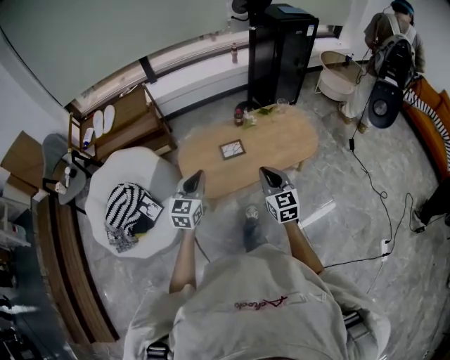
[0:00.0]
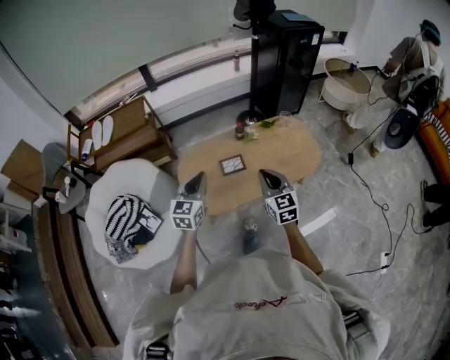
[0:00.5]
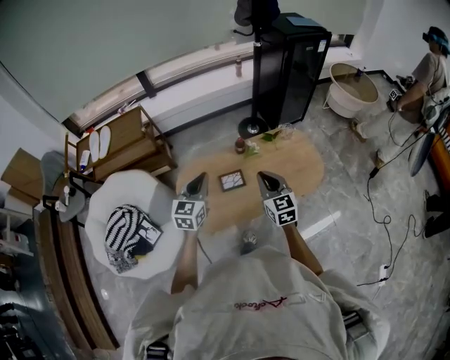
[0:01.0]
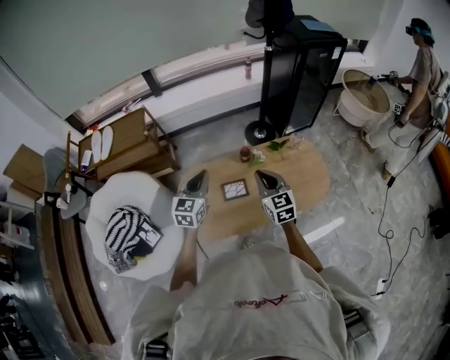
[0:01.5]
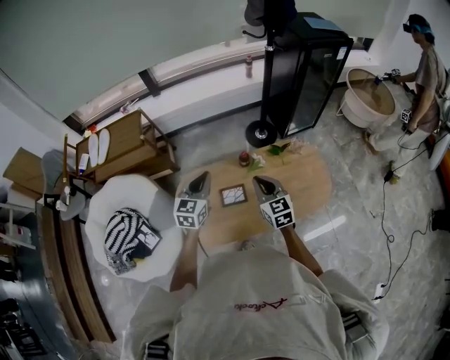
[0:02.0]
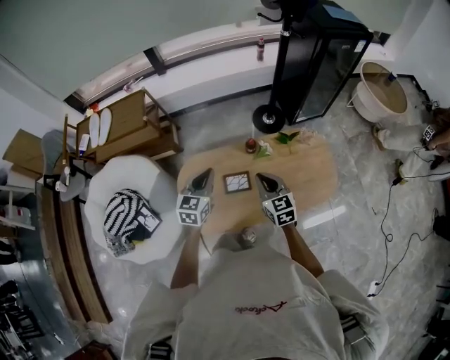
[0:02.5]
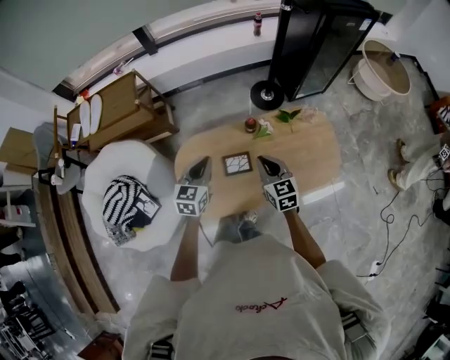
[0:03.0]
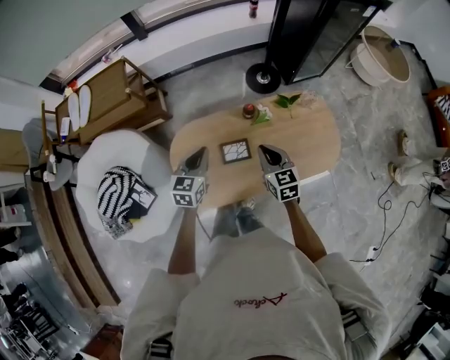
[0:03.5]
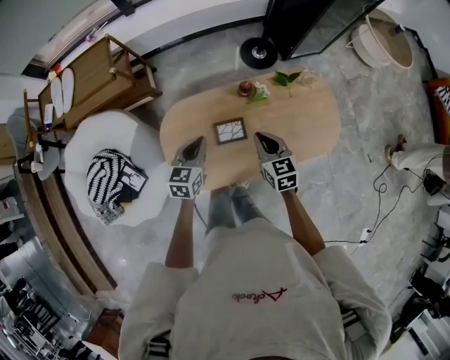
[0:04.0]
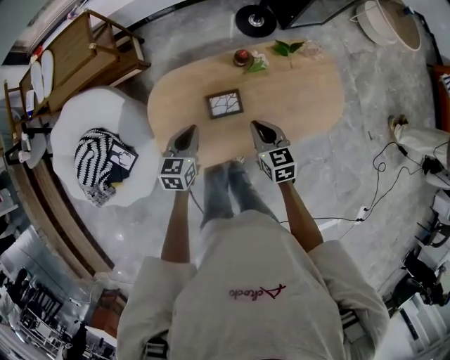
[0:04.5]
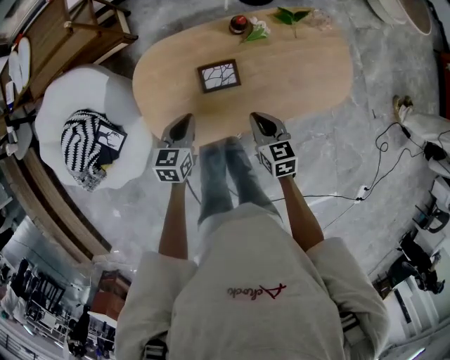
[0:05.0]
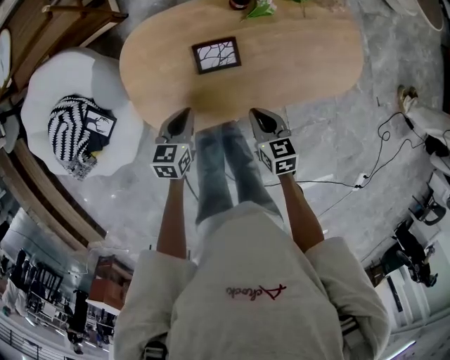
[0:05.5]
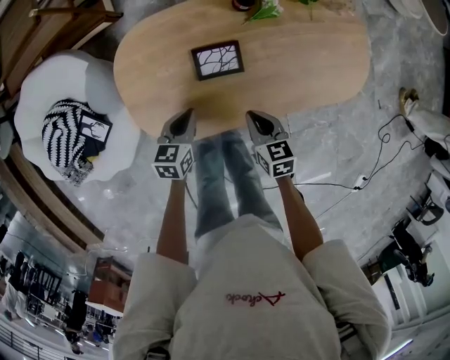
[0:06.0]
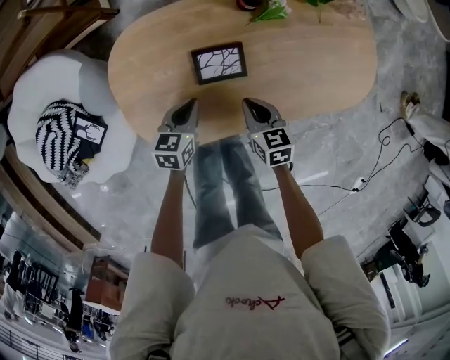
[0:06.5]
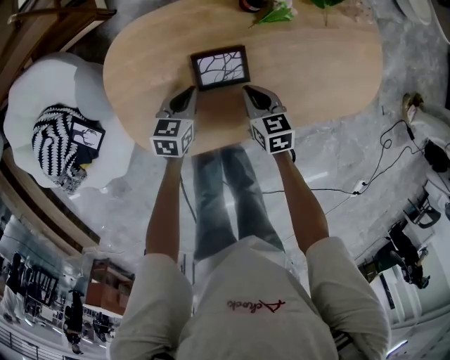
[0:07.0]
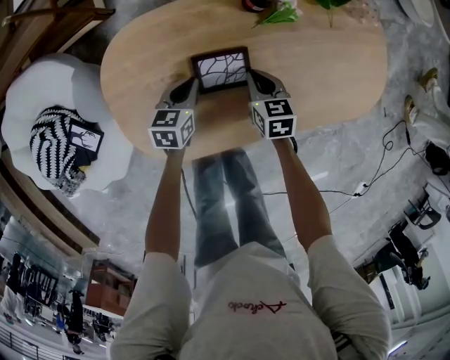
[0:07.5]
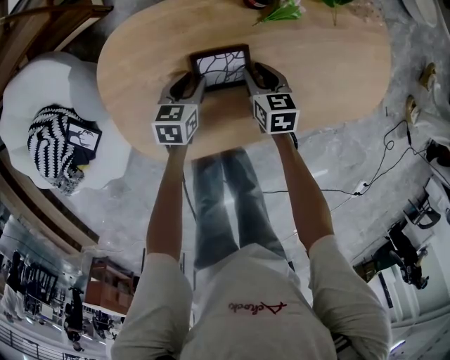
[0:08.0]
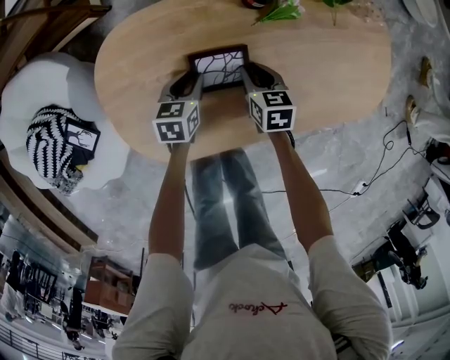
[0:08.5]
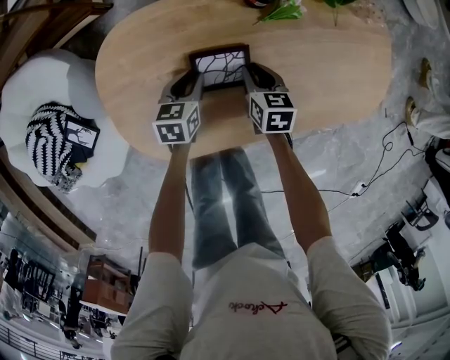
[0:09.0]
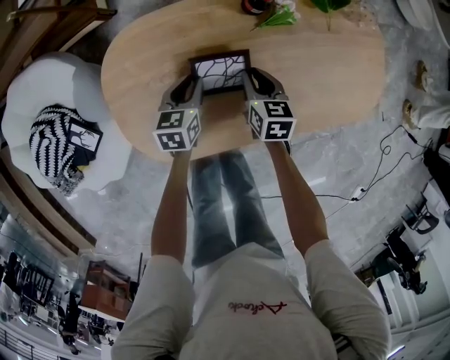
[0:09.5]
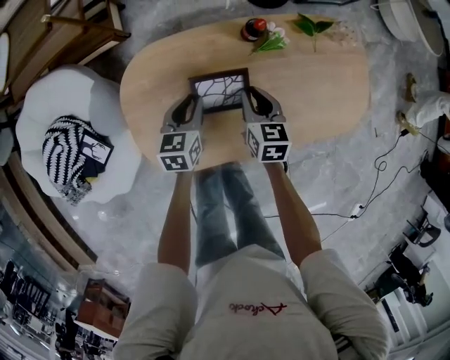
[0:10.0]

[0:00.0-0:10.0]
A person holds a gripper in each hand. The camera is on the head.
0:00.0 to 0:02.0: The grippers both shift forward by some 35 cm.
0:02.0 to 0:04.0: Both grippers travel together downward, some 15 cm.
0:04.0 to 0:06.0: The left gripper moves downward, approximately 25 cm. Meanwhile the right gripper goes about 30 cm downward and backward.
0:06.0 to 0:08.0: The left gripper shifts about 20 cm downward and forward, and opens up. Meanwhile the right gripper travels forward and downward by about 20 cm, and opens up.
0:08.0 to 0:10.0: Both grippers move upward, roughly 15 cm.

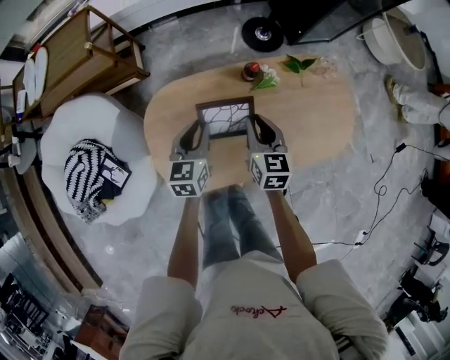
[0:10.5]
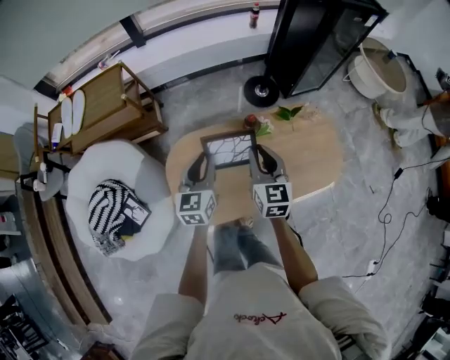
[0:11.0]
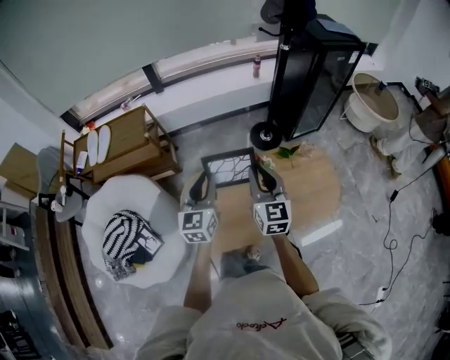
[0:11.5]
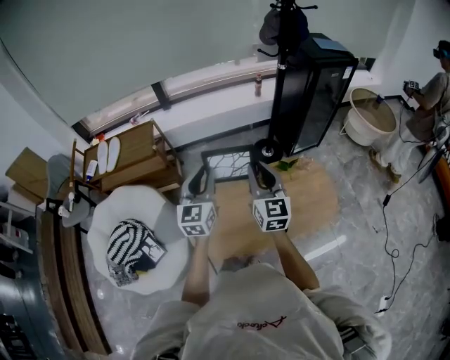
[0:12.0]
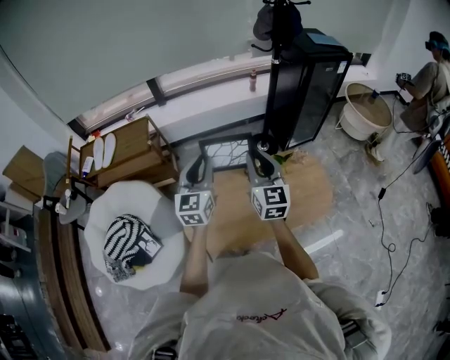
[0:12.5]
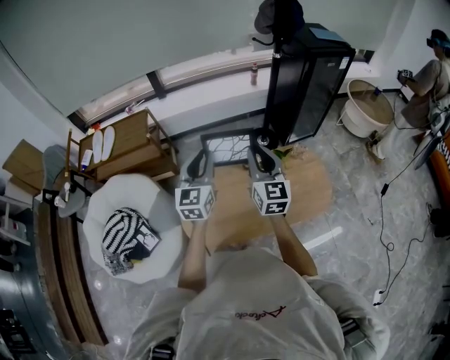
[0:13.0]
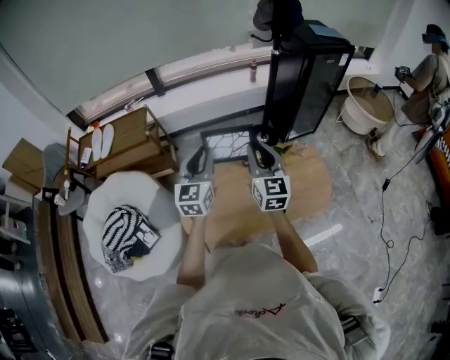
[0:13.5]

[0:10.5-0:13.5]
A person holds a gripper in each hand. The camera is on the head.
0:10.5 to 0:12.0: The two grippers go approximately 40 cm upward. The right gripper turns by some 30 degrees. Meanwhile the left gripper swivels approximately 30 degrees.
0:12.0 to 0:13.5: The grippers make only small movements.

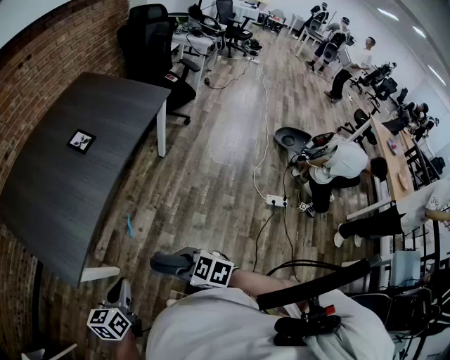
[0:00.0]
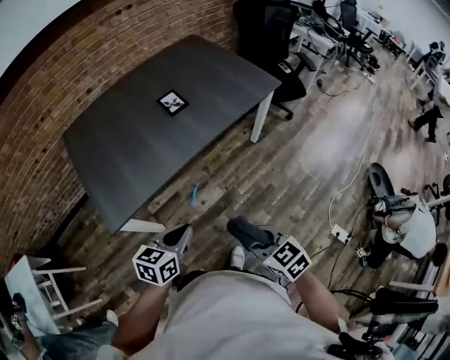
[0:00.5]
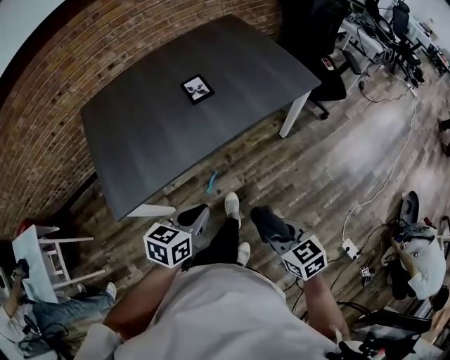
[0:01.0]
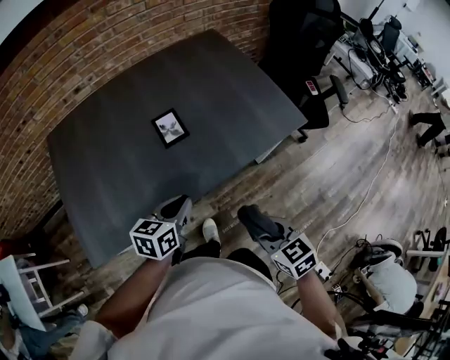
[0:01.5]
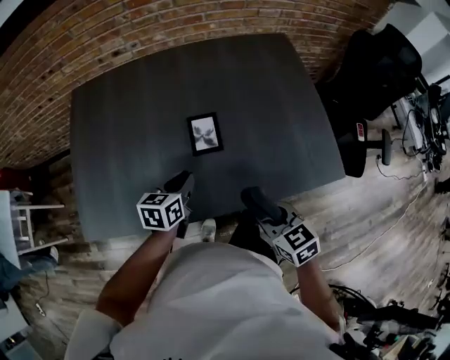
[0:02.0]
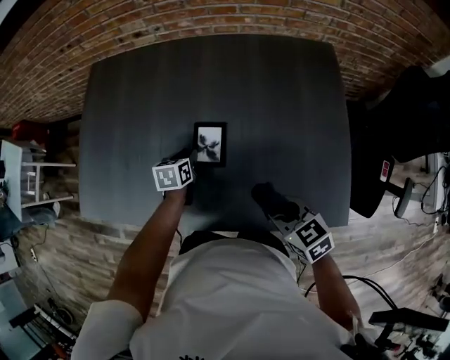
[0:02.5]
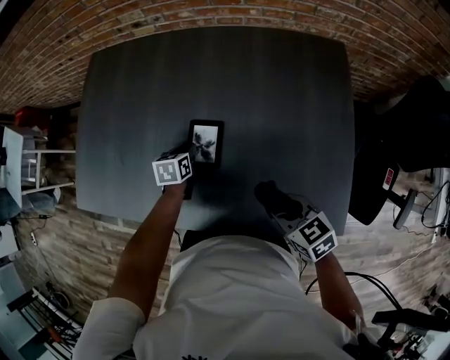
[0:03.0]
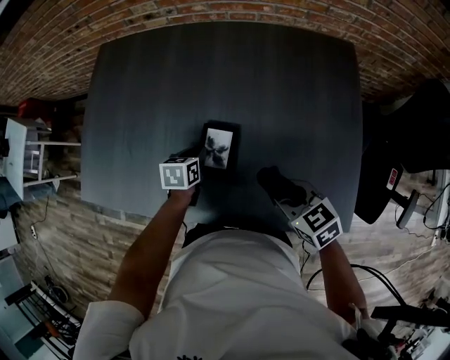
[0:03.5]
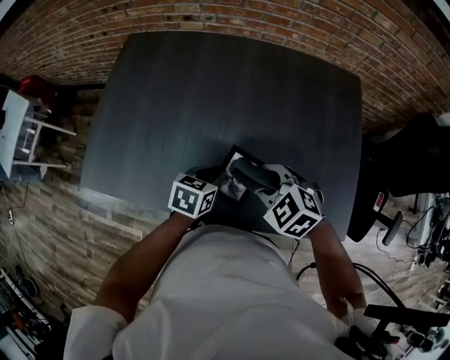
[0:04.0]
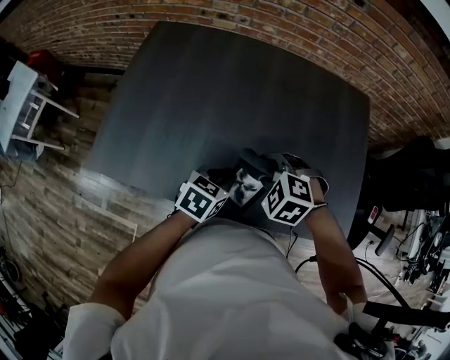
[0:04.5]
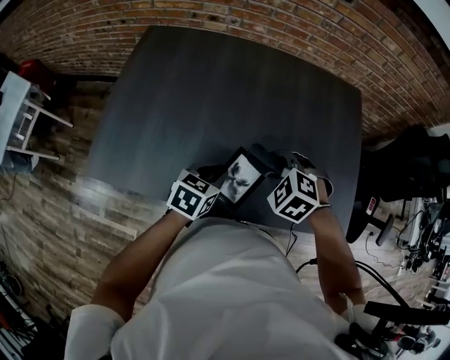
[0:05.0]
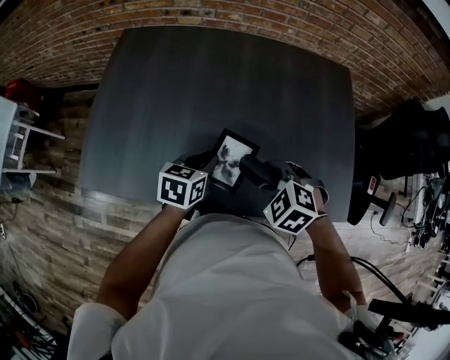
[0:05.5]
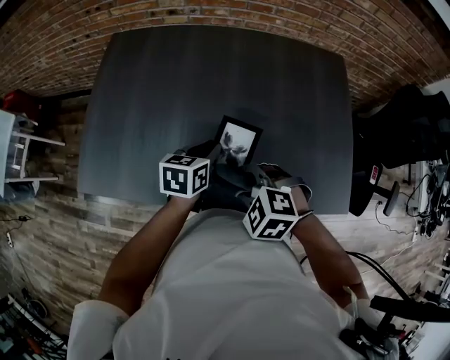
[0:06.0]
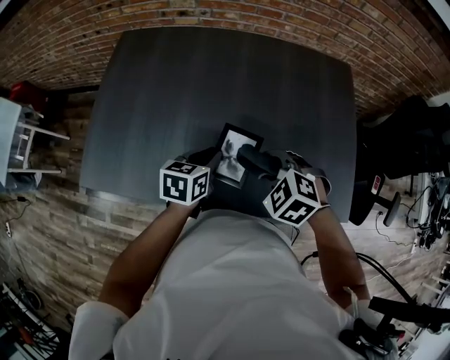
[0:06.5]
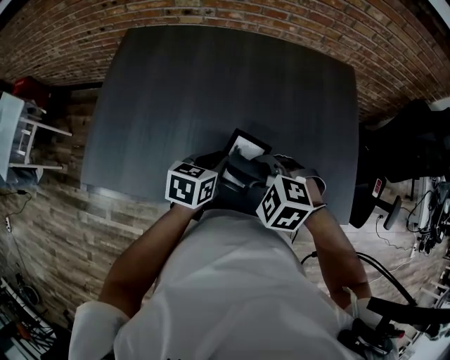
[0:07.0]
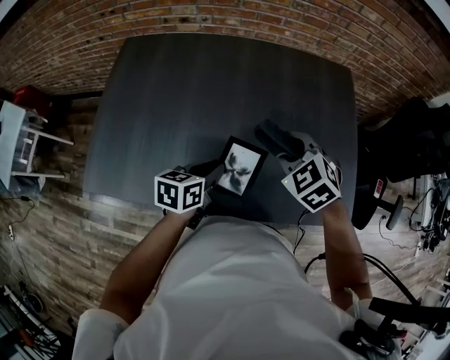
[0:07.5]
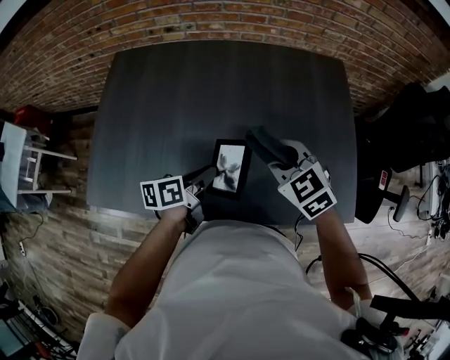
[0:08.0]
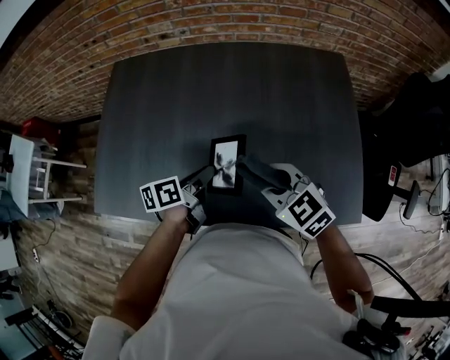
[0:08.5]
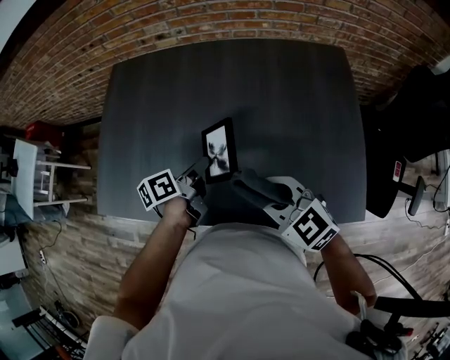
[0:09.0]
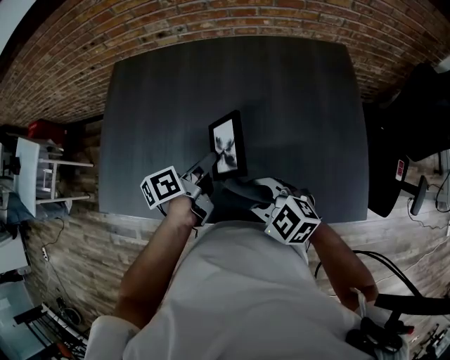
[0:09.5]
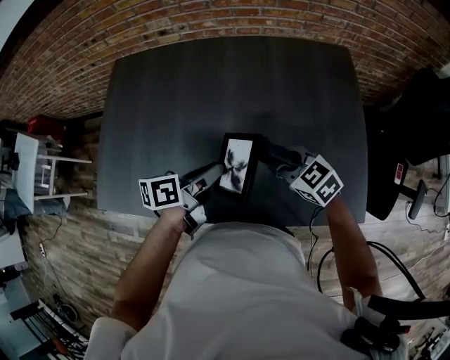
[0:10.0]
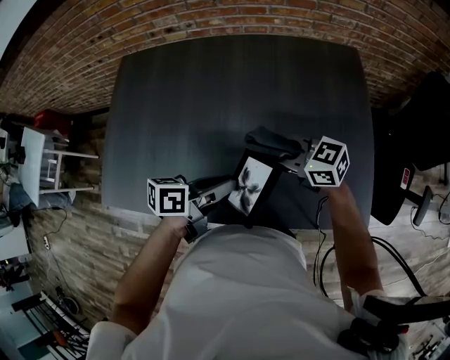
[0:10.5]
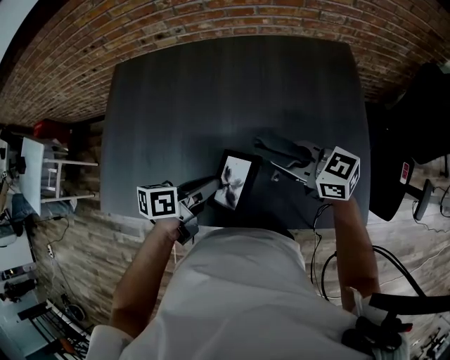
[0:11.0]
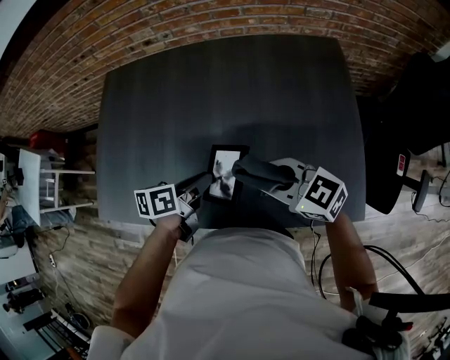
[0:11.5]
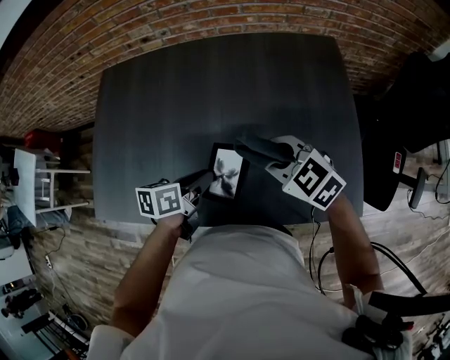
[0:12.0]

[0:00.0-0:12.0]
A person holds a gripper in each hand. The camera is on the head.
0:00.0 to 0:02.0: The pair of grippers is taken some 60 cm. The left gripper swivels roughly 40 degrees.
0:02.0 to 0:04.0: The left gripper goes downward and returns, some 15 cm each way; the right gripper moves roughly 20 cm, and rolls counterclockwise, seen from behind, by about 50 degrees.
0:04.0 to 0:06.0: The right gripper shifts roughly 10 cm backward and to the left.
0:06.0 to 0:08.0: The right gripper is displaced forward, to the right and upward by about 15 cm, and turns by roughly 30 degrees. The left gripper turns by approximately 30 degrees.
0:08.0 to 0:10.0: The left gripper moves to the right, some 5 cm, while the right gripper travels downward by roughly 10 cm.
0:10.0 to 0:12.0: The right gripper travels upward by approximately 5 cm.

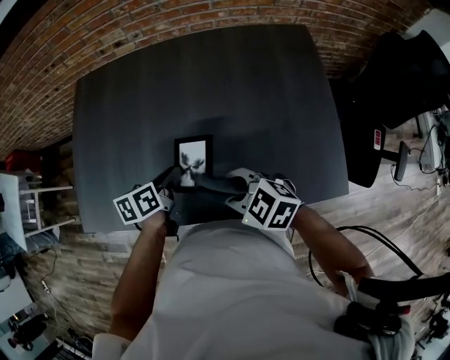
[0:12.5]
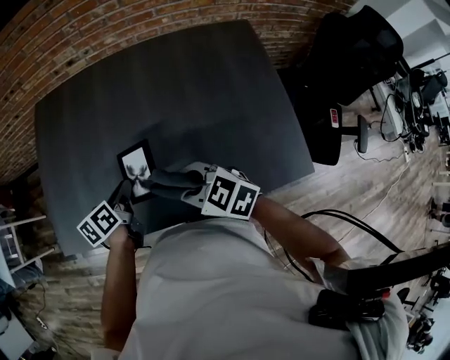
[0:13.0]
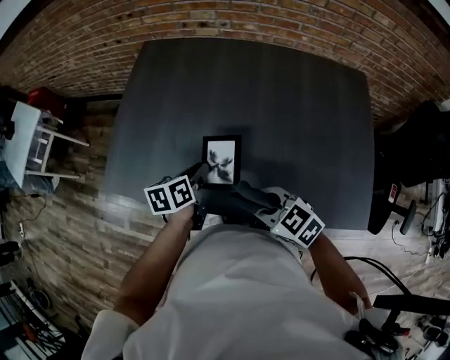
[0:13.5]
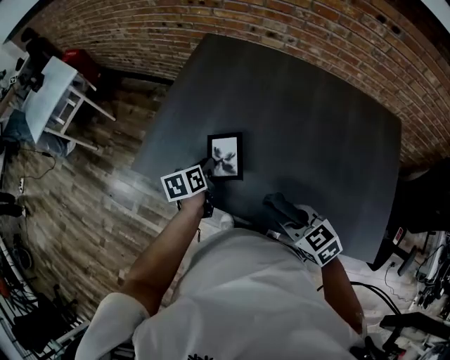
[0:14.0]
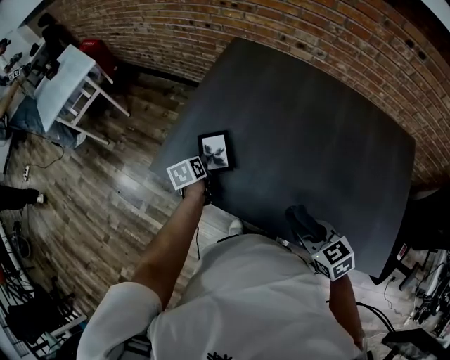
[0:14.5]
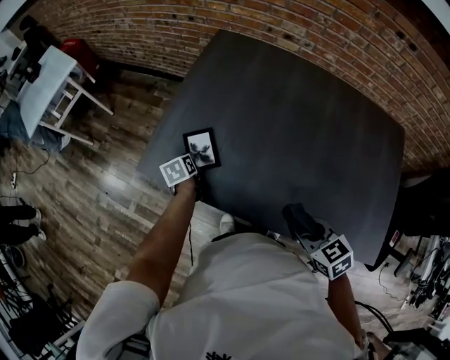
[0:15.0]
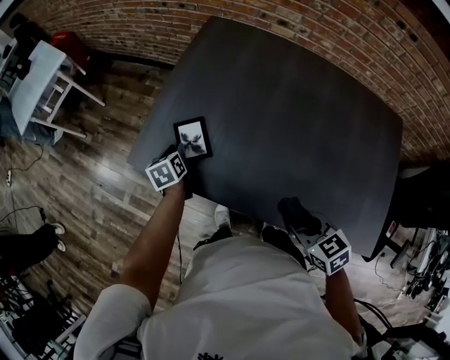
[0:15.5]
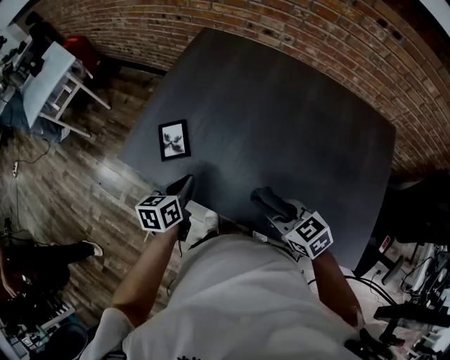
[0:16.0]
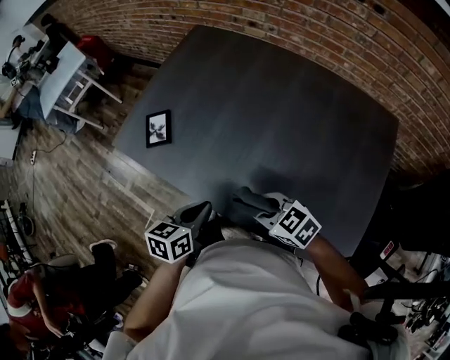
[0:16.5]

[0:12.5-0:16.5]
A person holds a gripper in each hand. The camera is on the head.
0:12.5 to 0:14.5: The right gripper heads to the left, covering approximately 15 cm. The left gripper travels to the left by some 40 cm, and changes its angle by about 40 degrees.
0:14.5 to 0:16.5: The left gripper heads backward and to the right, covering some 40 cm, and changes its angle by some 30 degrees. The right gripper heads to the right and backward, covering roughly 15 cm, and swivels some 30 degrees.
